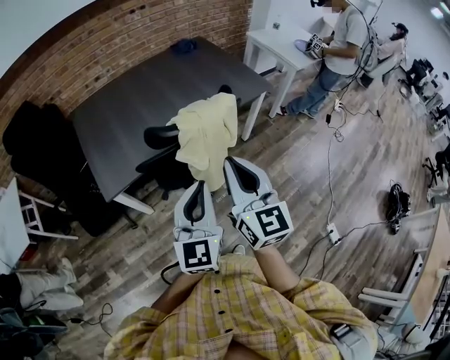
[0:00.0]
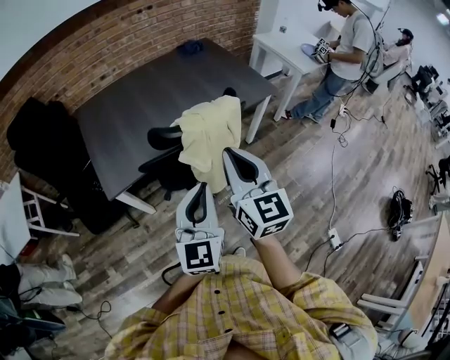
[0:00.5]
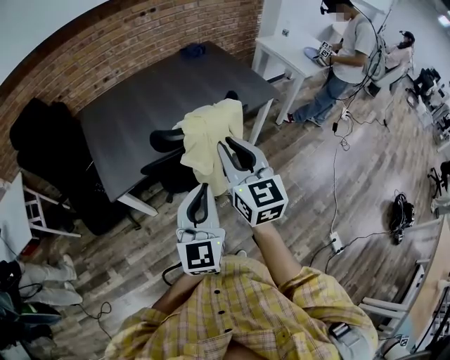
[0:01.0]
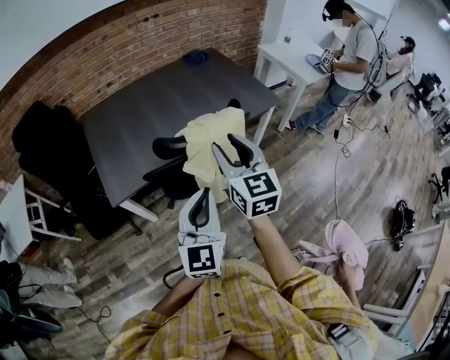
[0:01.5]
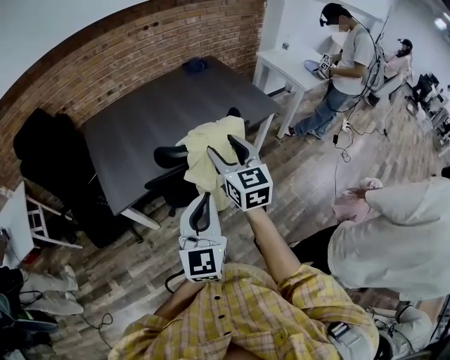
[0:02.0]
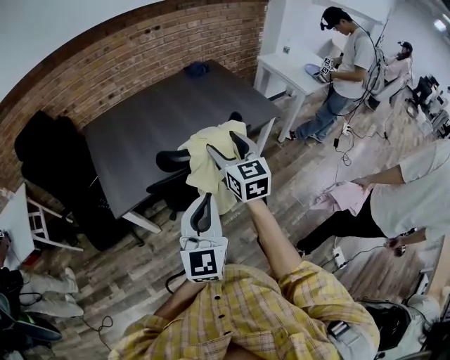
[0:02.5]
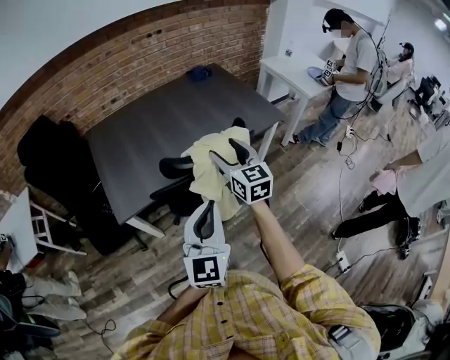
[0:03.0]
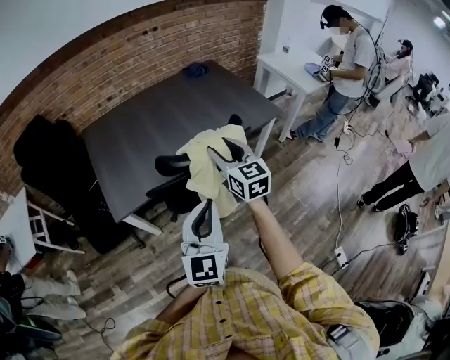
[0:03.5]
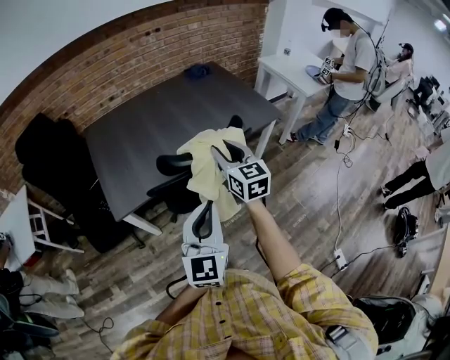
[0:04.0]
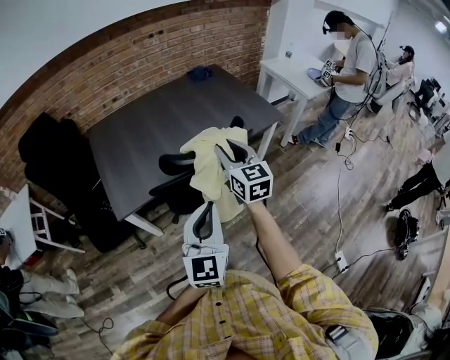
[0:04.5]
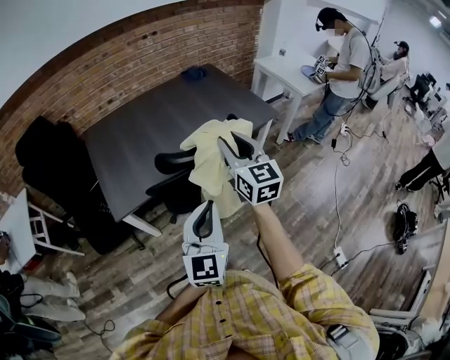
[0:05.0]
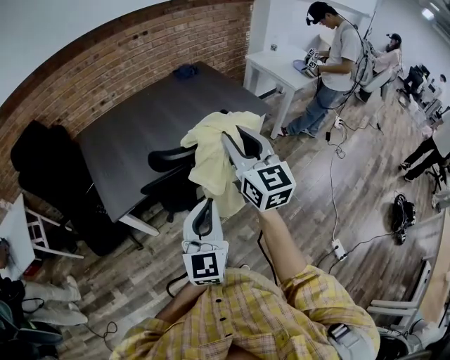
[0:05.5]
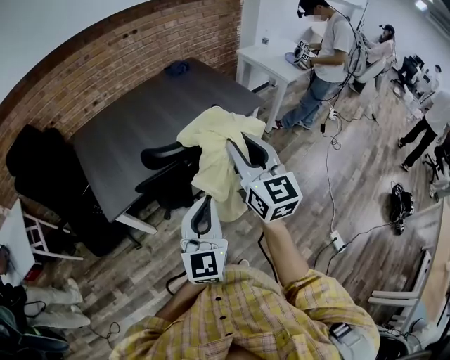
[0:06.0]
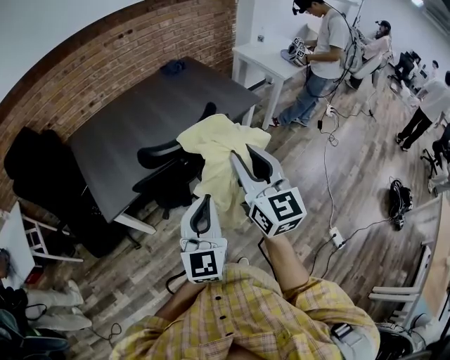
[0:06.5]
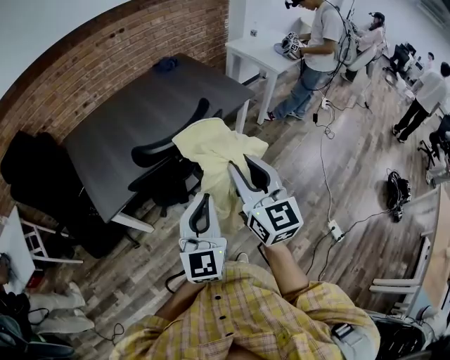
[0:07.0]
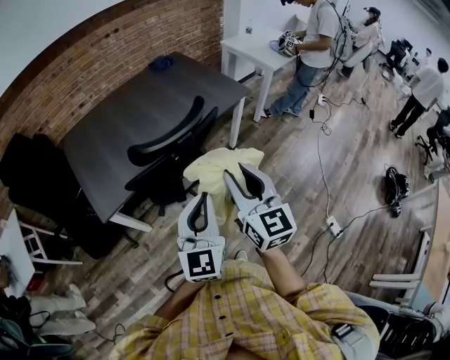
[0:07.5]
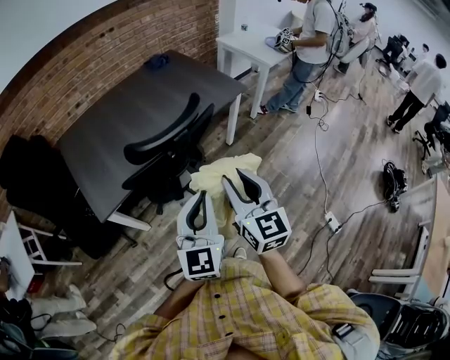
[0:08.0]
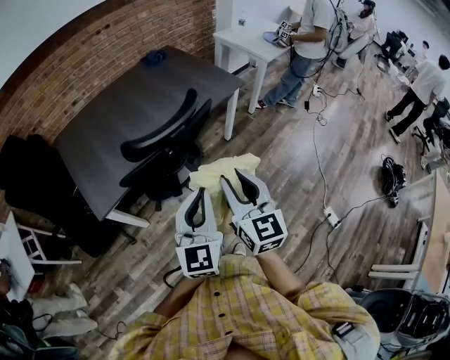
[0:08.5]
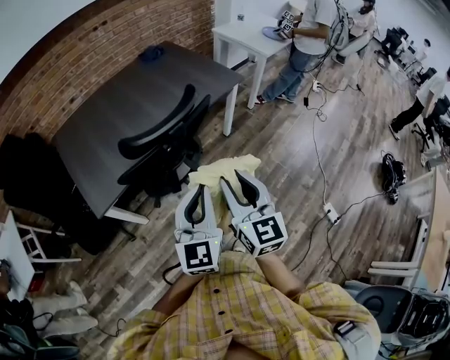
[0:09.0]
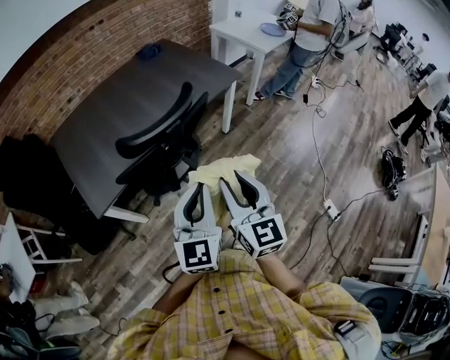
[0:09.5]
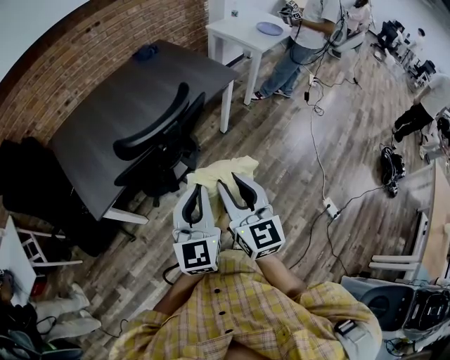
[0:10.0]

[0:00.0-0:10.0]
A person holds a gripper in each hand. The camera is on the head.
0:00.0 to 0:02.0: The right gripper shifts about 15 cm forward, and opens.
0:02.0 to 0:04.0: The right gripper moves some 5 cm, and closes.
0:04.0 to 0:06.0: The right gripper moves backward, upward and to the right, about 15 cm.
0:06.0 to 0:08.0: The right gripper travels backward and downward by approximately 10 cm.
0:08.0 to 0:10.0: The grippers stay close to where they were, moving slightly.

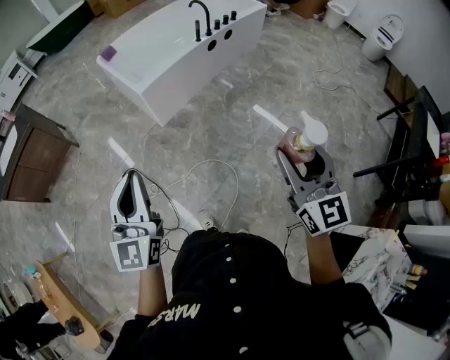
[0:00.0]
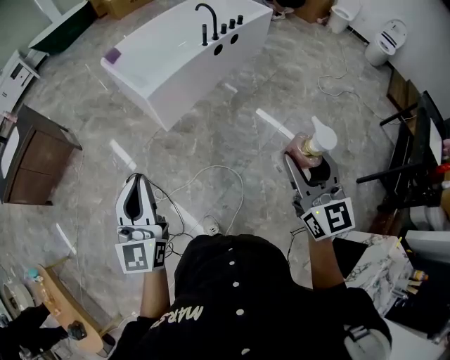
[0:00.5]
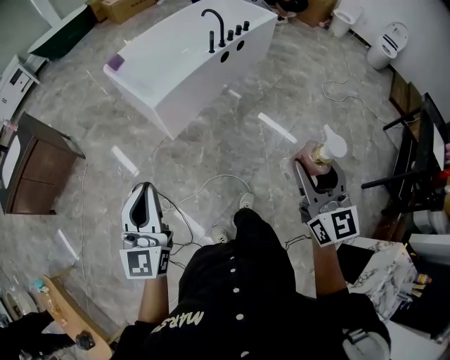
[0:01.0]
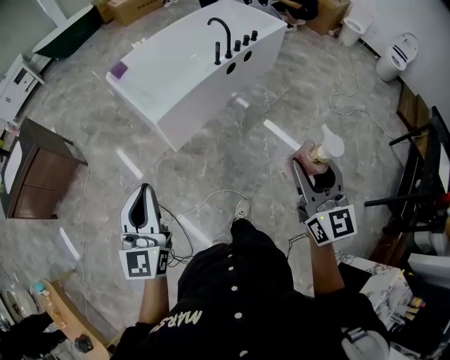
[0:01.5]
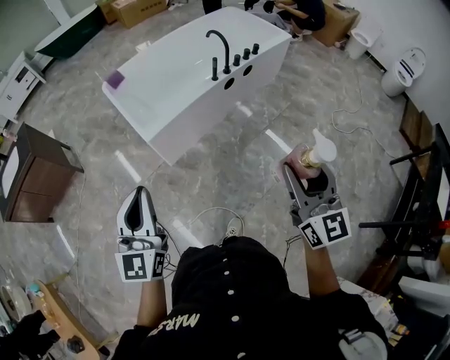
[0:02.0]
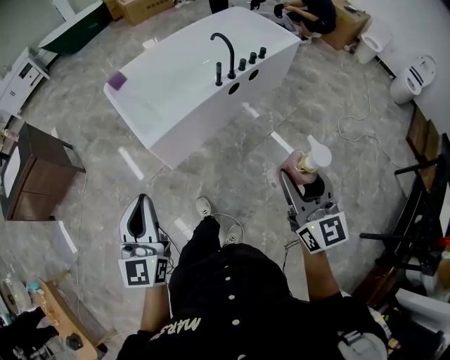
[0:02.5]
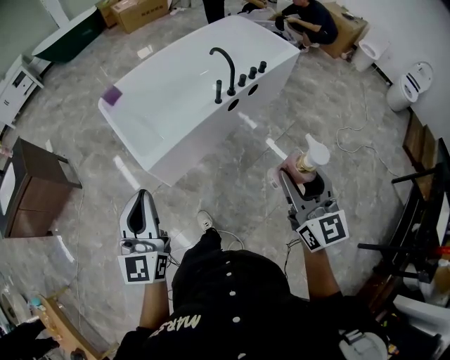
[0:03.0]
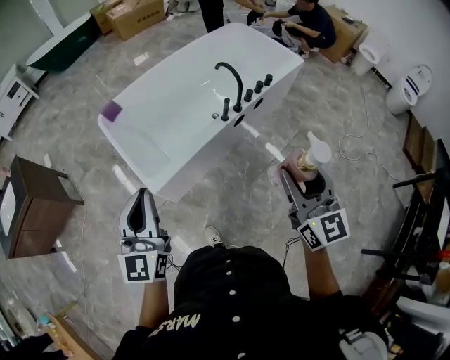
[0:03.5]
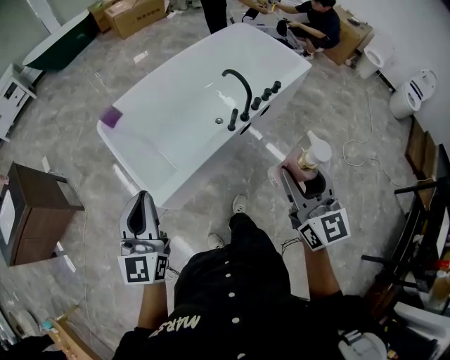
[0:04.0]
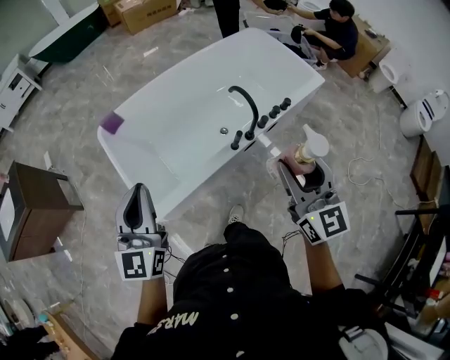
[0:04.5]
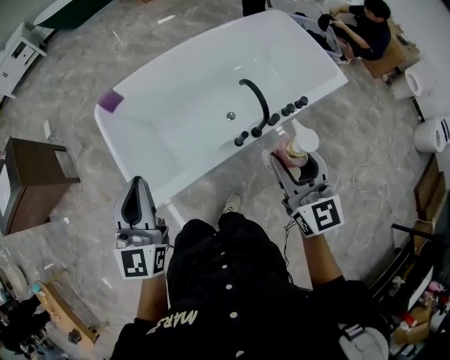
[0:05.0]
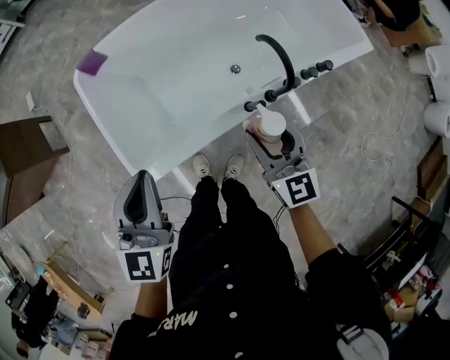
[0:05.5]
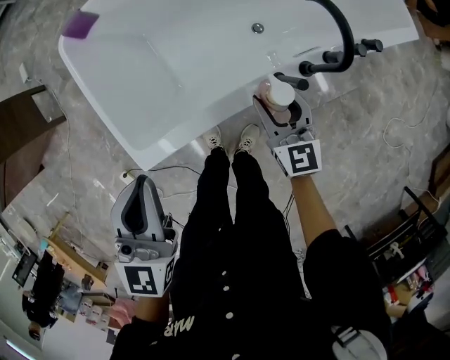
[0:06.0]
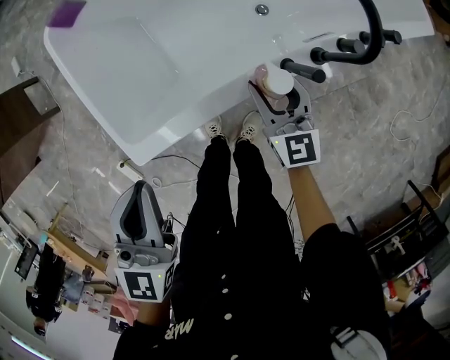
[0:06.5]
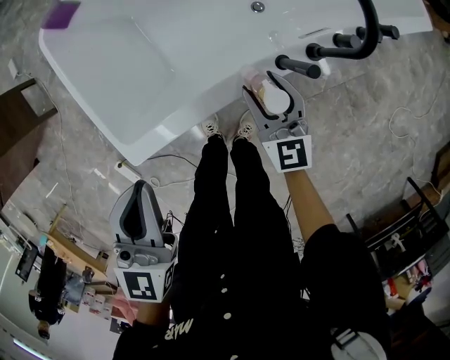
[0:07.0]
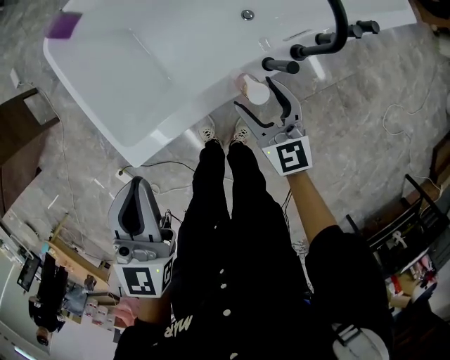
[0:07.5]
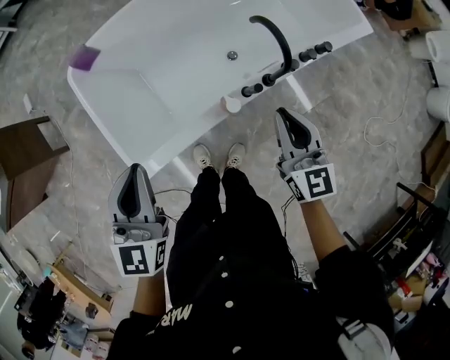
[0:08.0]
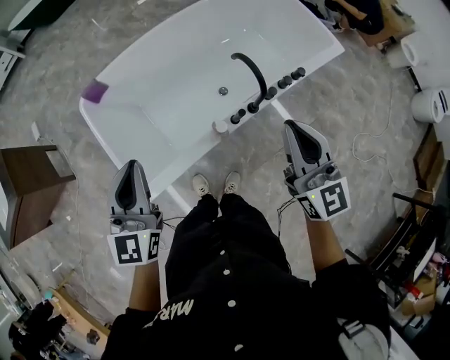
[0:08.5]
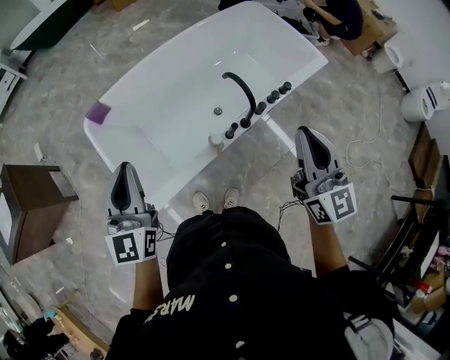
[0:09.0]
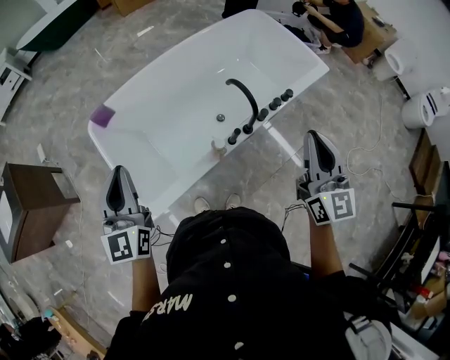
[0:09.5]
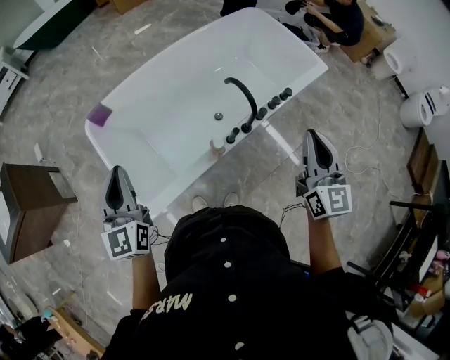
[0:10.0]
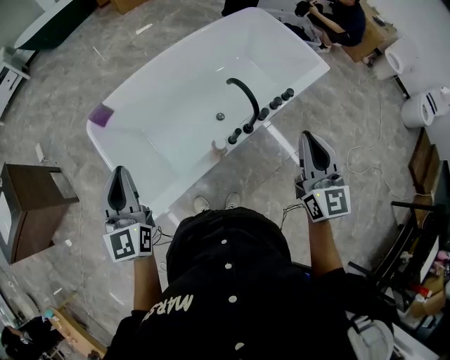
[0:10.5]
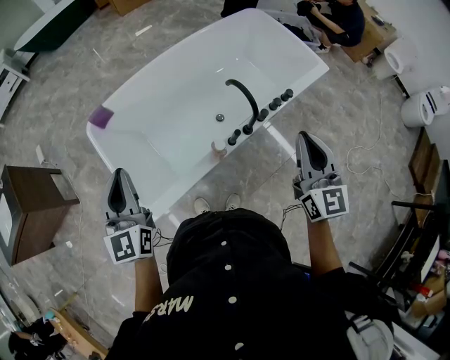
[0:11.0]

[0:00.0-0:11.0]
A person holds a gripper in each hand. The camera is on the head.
0:00.0 to 0:02.0: The grippers both shift forward by roughly 30 cm.
0:02.0 to 0:03.5: The two grippers go about 30 cm forward.
0:03.5 to 0:05.5: Both grippers move forward and downward, roughly 40 cm. The right gripper turns by approximately 30 degrees.
0:05.5 to 0:07.5: The right gripper travels downward by roughly 20 cm; the left gripper heads downward, covering approximately 10 cm.
0:07.5 to 0:09.0: The left gripper travels upward by approximately 20 cm, and swivels approximately 20 degrees. The right gripper heads upward, covering approximately 40 cm, rotates approximately 30 degrees, and closes its fingers.
0:09.0 to 0:11.0: There are only small adjustments of the grippers.

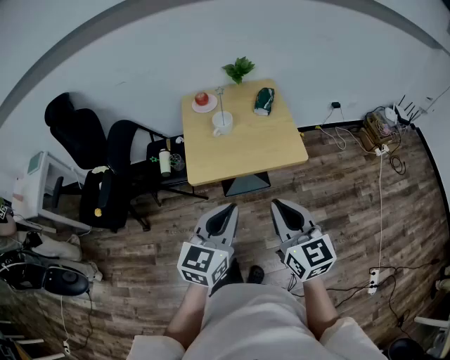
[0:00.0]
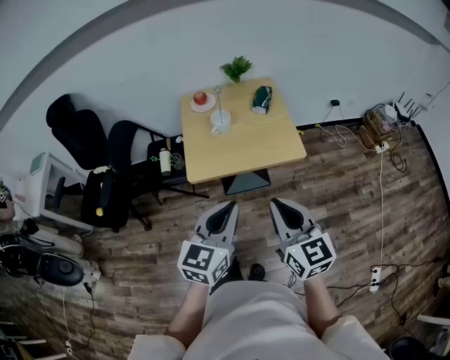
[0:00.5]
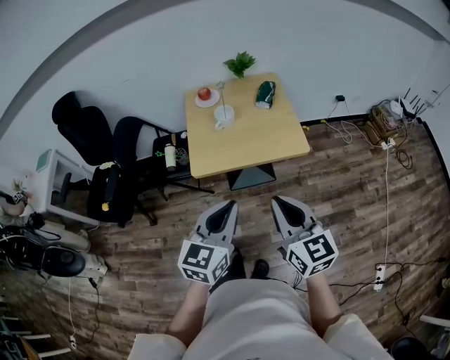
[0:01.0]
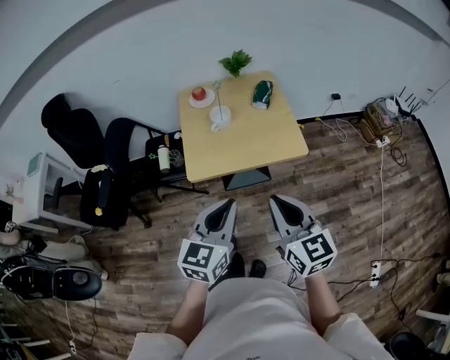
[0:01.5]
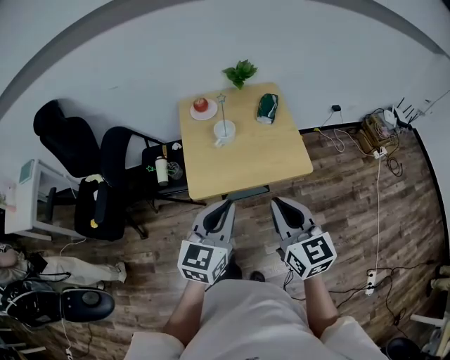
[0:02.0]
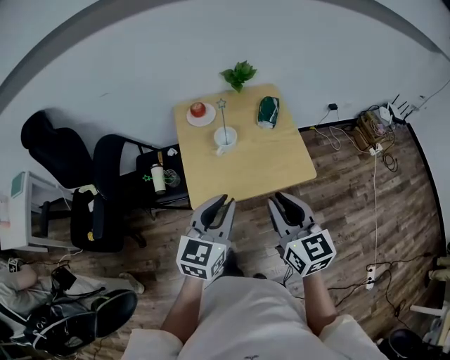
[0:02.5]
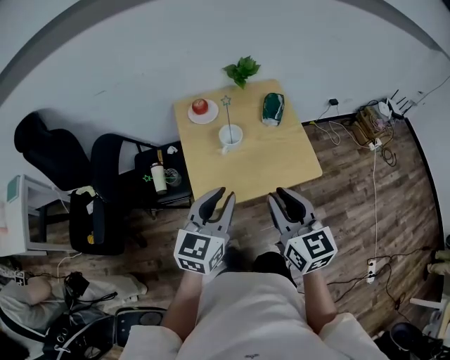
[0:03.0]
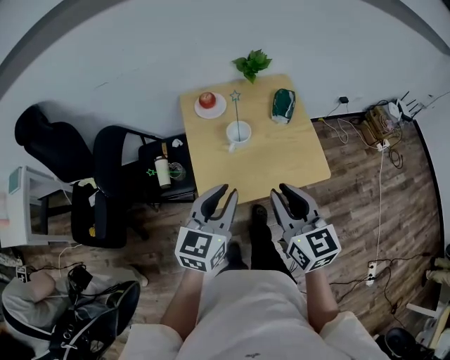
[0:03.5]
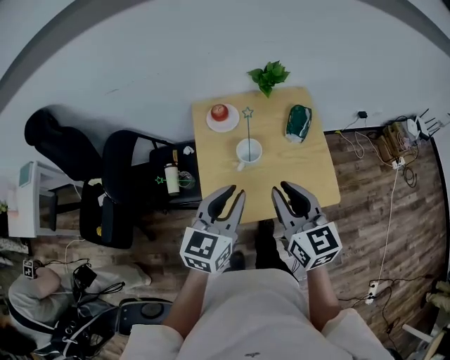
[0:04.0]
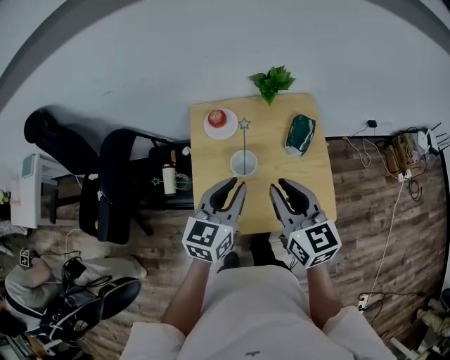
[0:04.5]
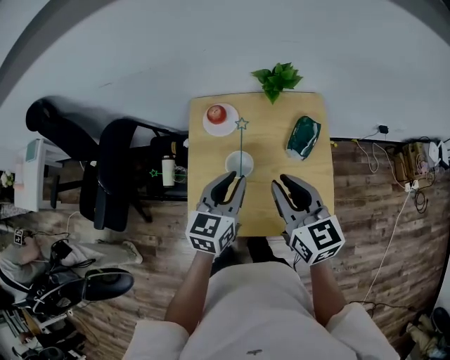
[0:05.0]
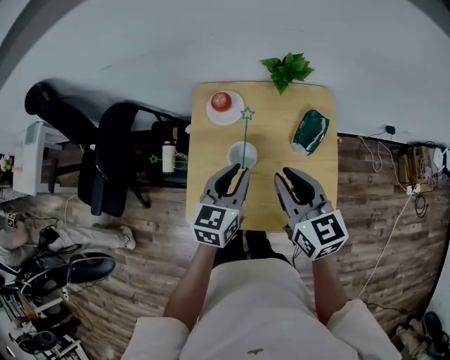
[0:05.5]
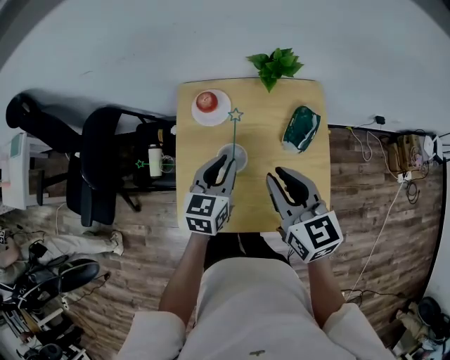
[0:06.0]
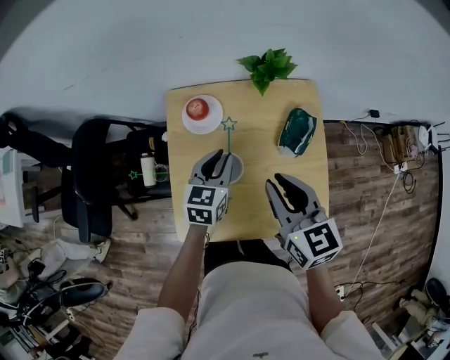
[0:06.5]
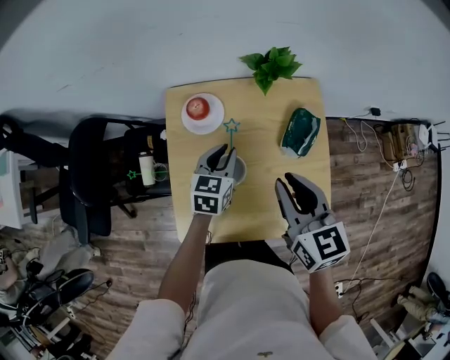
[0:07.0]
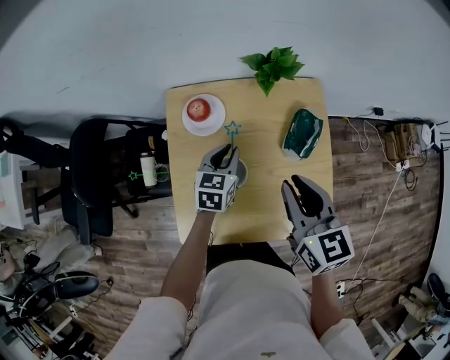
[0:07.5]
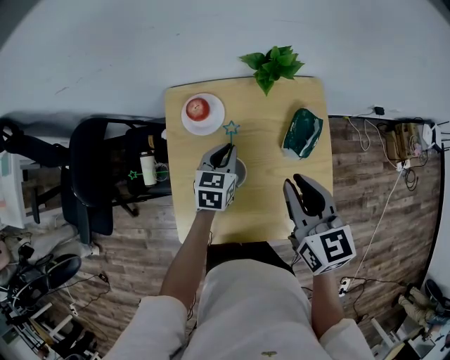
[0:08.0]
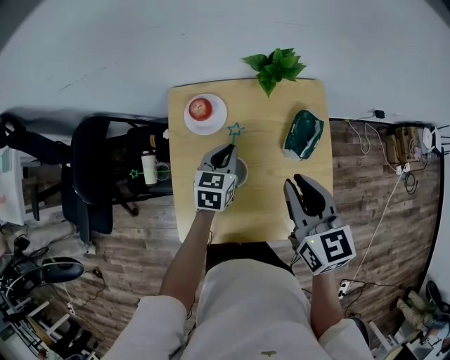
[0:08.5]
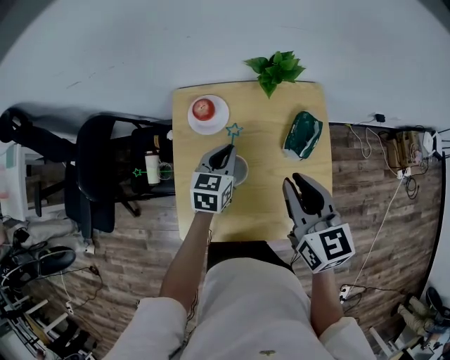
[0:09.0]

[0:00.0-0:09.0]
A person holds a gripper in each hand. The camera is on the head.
0:00.0 to 0:02.0: Both grippers travel together forward, roughly 10 cm.
0:02.0 to 0:04.5: Both grippers travel together forward, some 30 cm.
0:04.5 to 0:07.0: The right gripper heads forward and downward, covering approximately 15 cm; the left gripper is displaced downward and forward by about 25 cm.
0:07.0 to 0:09.0: The grippers move only a little.
